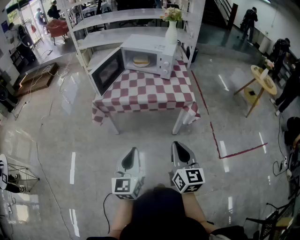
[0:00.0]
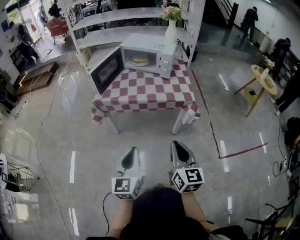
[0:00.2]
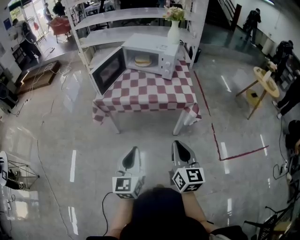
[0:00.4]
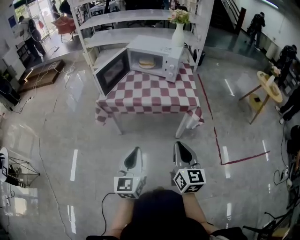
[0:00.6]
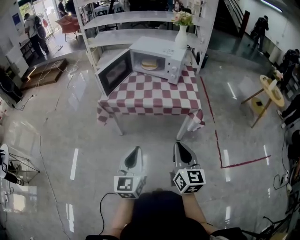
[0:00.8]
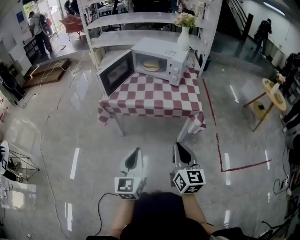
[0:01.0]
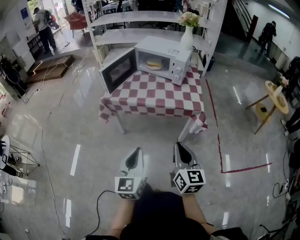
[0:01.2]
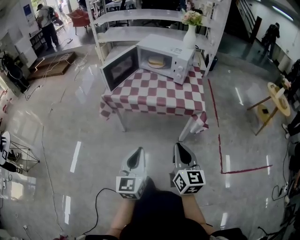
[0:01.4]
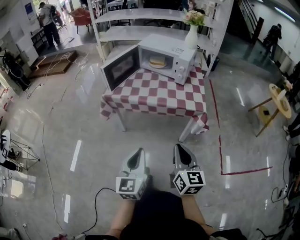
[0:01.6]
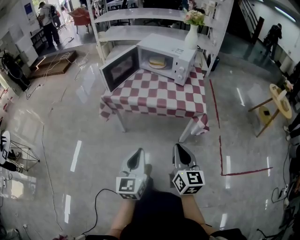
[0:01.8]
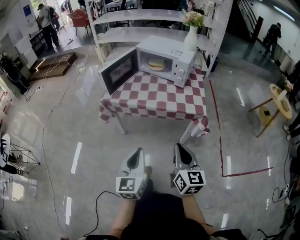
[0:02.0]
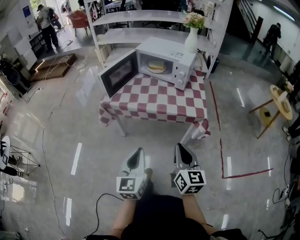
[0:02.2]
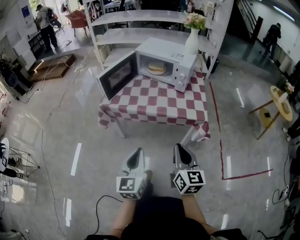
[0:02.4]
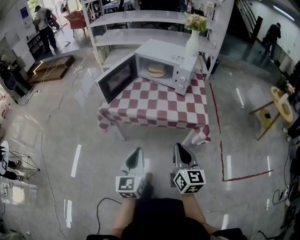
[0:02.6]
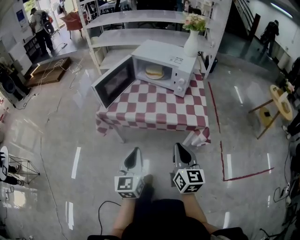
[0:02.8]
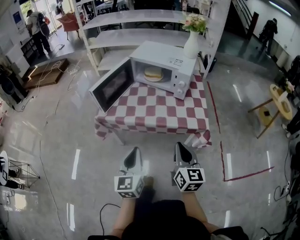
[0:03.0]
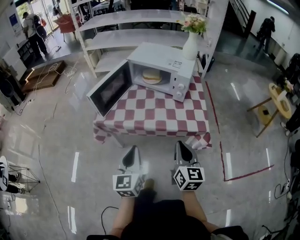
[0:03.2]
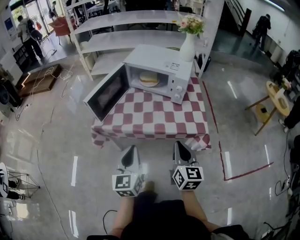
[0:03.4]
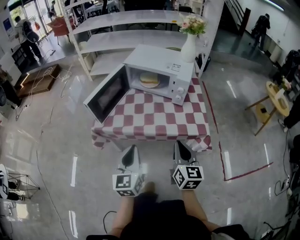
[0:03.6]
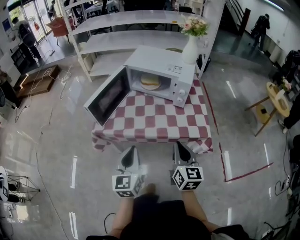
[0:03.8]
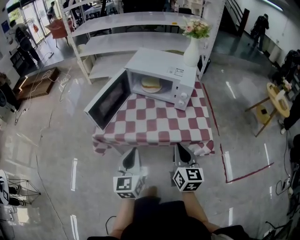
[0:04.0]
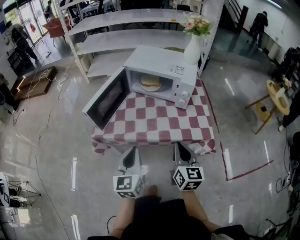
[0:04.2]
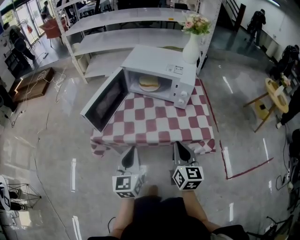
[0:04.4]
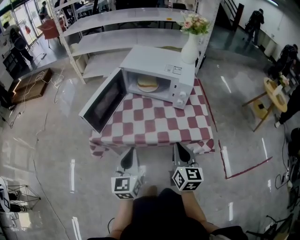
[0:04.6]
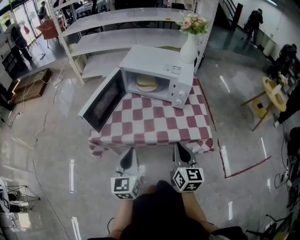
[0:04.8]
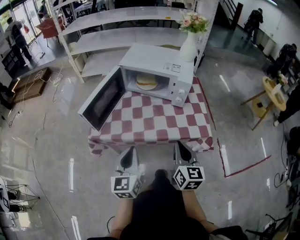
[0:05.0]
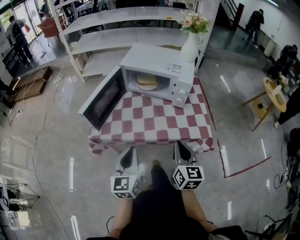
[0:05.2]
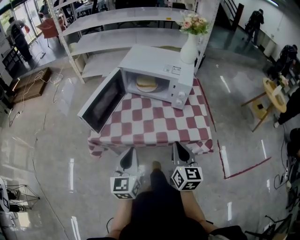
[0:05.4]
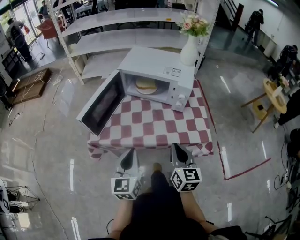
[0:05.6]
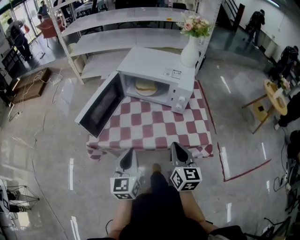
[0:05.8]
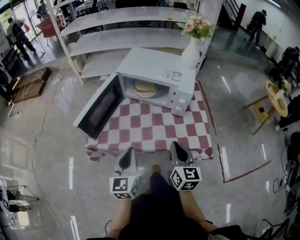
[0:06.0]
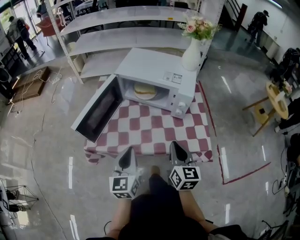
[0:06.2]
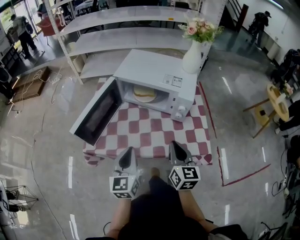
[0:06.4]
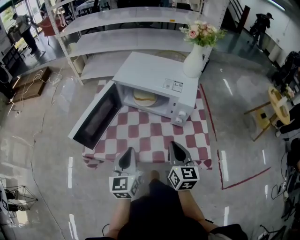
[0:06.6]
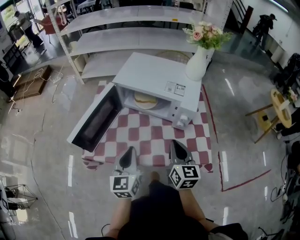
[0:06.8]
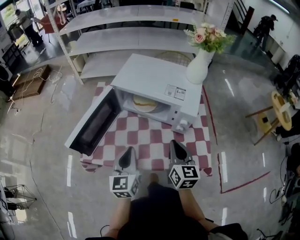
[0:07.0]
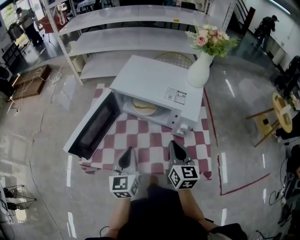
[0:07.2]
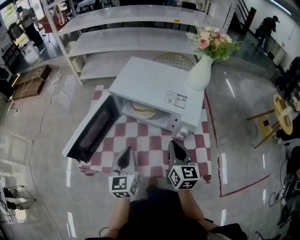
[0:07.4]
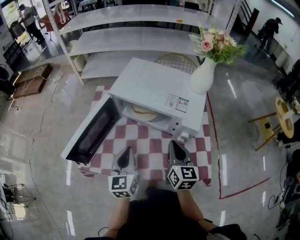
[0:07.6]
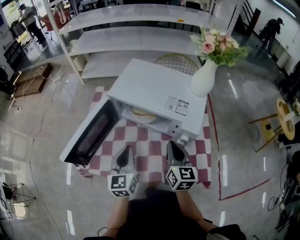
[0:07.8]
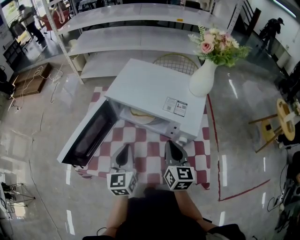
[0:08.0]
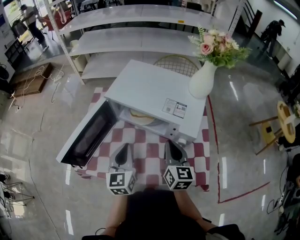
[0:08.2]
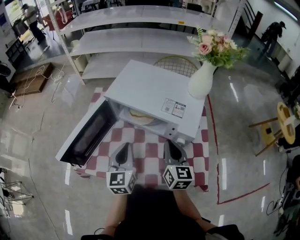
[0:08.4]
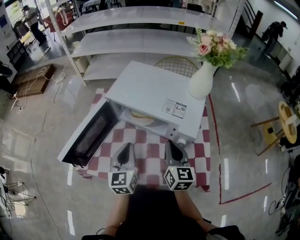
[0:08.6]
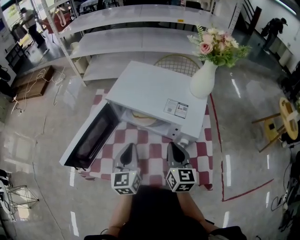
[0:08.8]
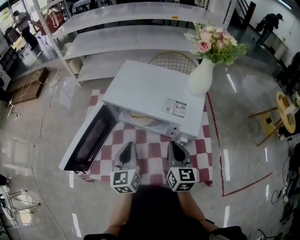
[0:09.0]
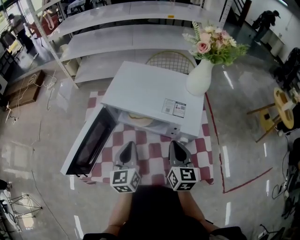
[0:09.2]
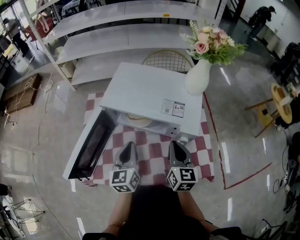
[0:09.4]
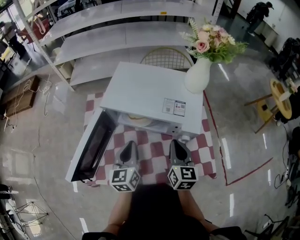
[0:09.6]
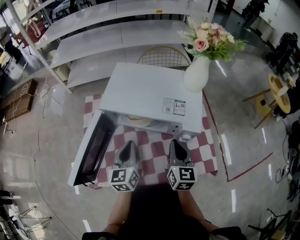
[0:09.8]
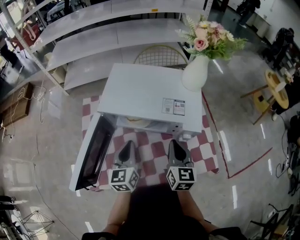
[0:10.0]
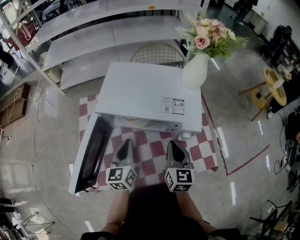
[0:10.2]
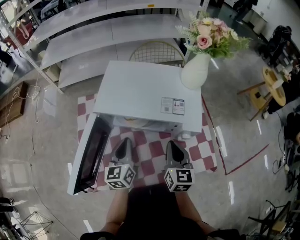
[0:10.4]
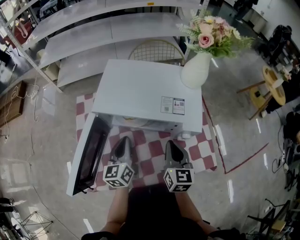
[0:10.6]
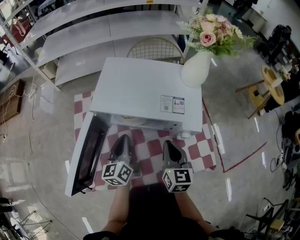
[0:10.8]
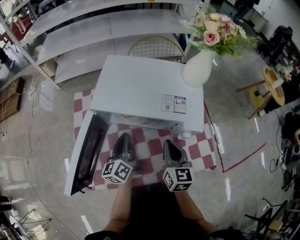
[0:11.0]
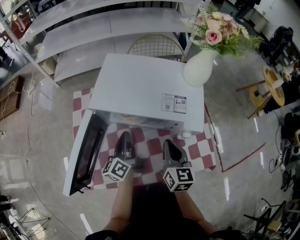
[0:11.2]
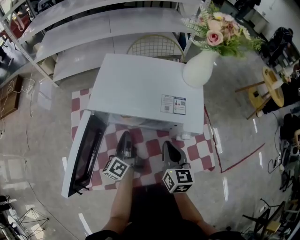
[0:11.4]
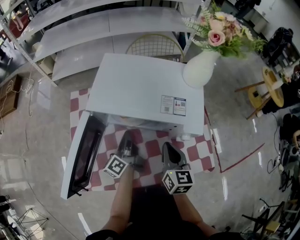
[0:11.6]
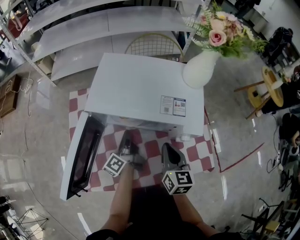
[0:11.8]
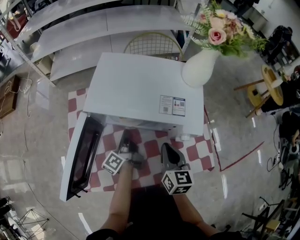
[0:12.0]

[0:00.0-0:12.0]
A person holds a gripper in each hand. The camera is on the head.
0:00.0 to 0:01.6: The left gripper ends up approximately 5 cm from where it was. The right gripper changes place by about 5 cm.
0:01.6 to 0:03.0: The two grippers go roughly 20 cm forward.
0:03.0 to 0:04.4: The grippers both shift forward by roughly 15 cm.
0:04.4 to 0:06.0: The two grippers go approximately 5 cm forward.
0:06.0 to 0:07.6: The two grippers go roughly 20 cm forward.
0:07.6 to 0:09.0: The left gripper goes some 5 cm forward.
0:09.0 to 0:10.4: The left gripper goes some 5 cm forward.
0:10.4 to 0:12.0: The left gripper shifts roughly 10 cm downward and forward, and rolls counterclockwise, seen from behind, by some 60 degrees.

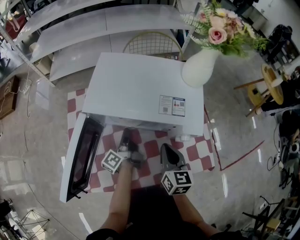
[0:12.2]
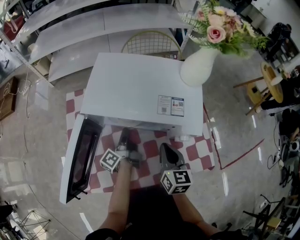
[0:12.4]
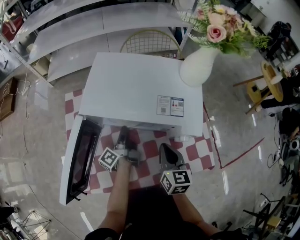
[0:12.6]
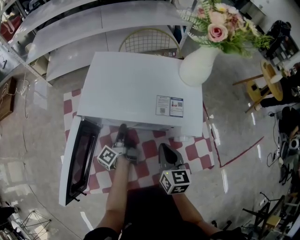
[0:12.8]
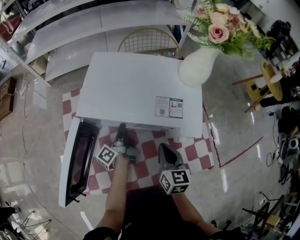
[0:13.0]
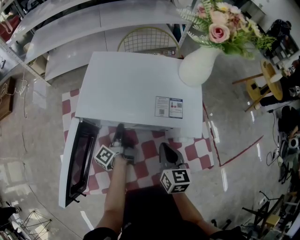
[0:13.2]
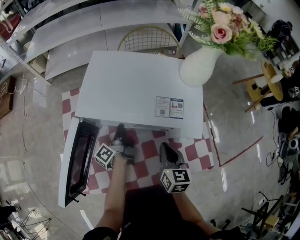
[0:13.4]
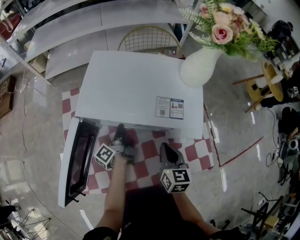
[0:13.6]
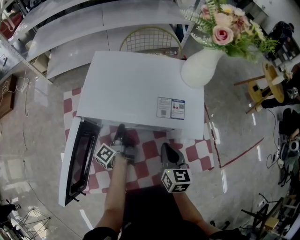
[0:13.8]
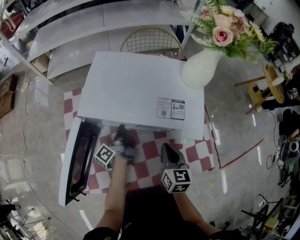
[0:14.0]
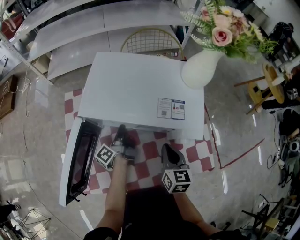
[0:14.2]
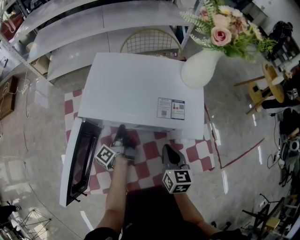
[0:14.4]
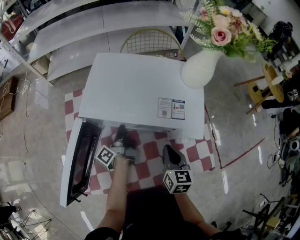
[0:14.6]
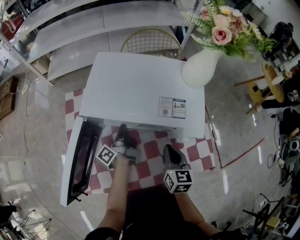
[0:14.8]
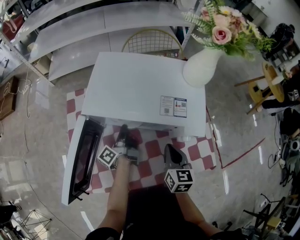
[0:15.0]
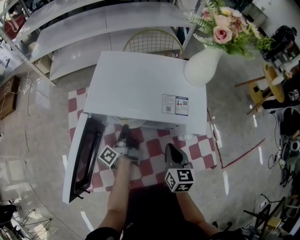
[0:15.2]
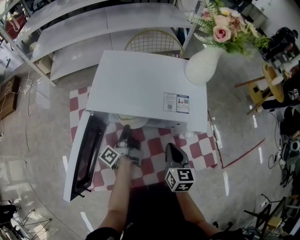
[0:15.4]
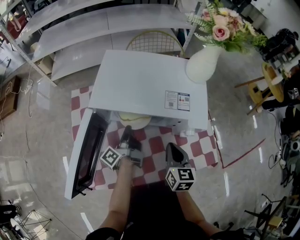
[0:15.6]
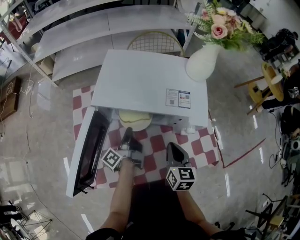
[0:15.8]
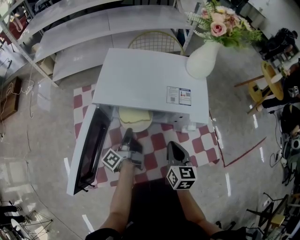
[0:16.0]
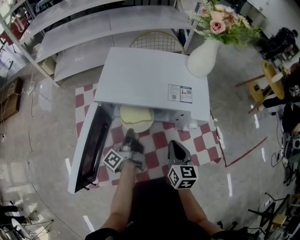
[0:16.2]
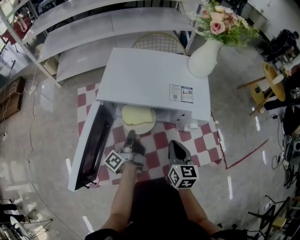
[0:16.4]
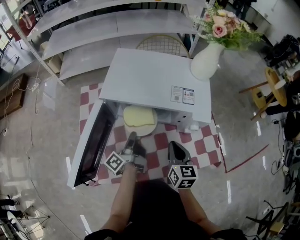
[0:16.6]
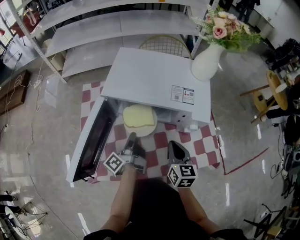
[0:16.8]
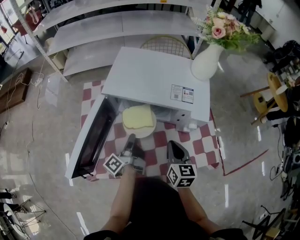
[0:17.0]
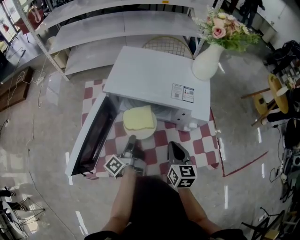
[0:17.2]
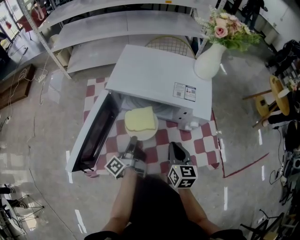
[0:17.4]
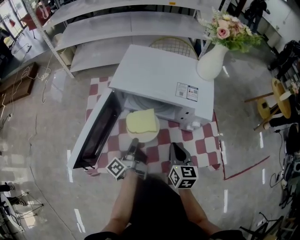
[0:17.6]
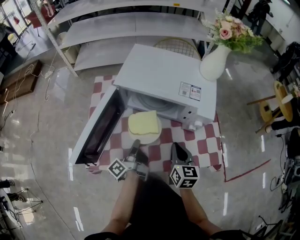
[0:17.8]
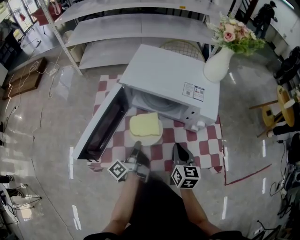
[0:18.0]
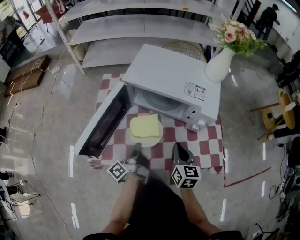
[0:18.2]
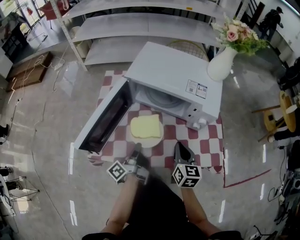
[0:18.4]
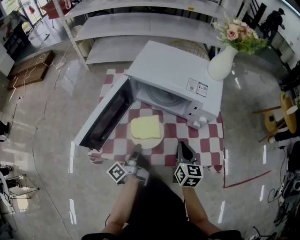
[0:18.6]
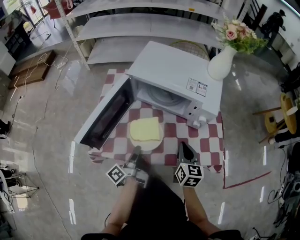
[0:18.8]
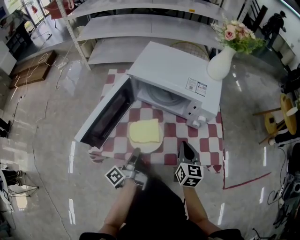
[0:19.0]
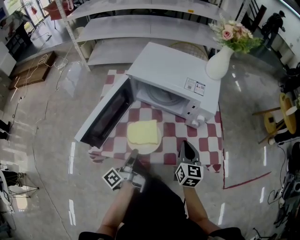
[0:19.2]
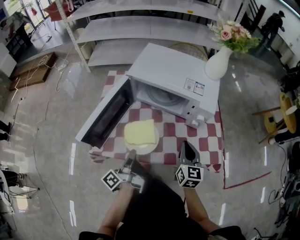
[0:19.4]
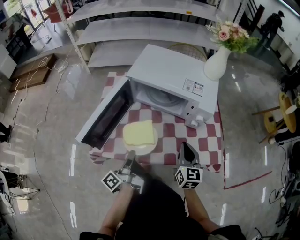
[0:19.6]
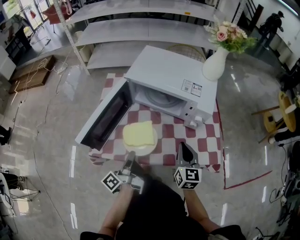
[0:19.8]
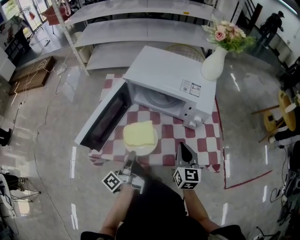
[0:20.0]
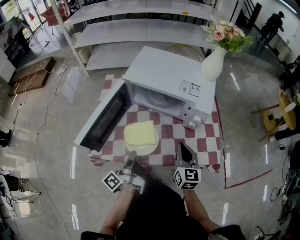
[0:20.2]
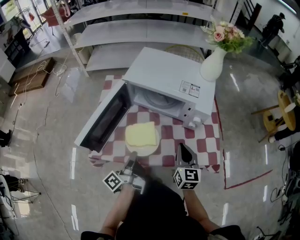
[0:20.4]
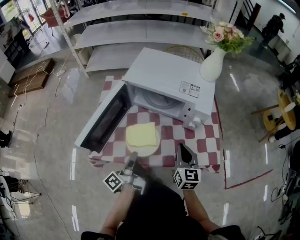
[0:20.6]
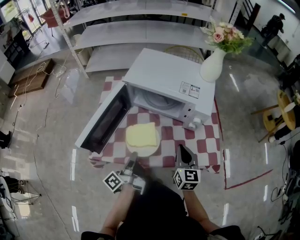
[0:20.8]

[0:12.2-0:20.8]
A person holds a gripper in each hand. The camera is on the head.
0:12.2 to 0:15.0: The grippers stay close to where they were, moving slightly.
0:15.0 to 0:16.6: The left gripper shifts some 10 cm backward.
0:16.6 to 0:18.0: The left gripper is displaced backward by roughly 10 cm.
0:18.0 to 0:19.4: The right gripper ends up some 5 cm from where it was. The left gripper shifts approximately 10 cm backward.
0:19.4 to 0:20.8: The grippers stay close to where they were, moving slightly.

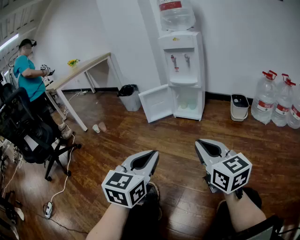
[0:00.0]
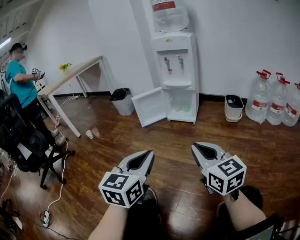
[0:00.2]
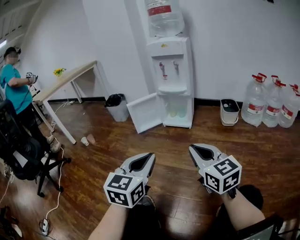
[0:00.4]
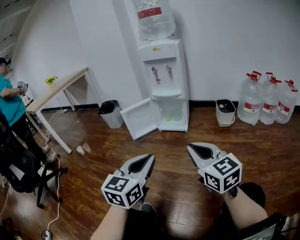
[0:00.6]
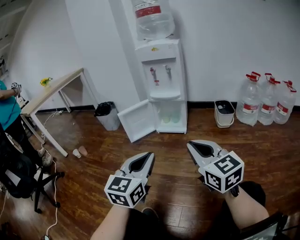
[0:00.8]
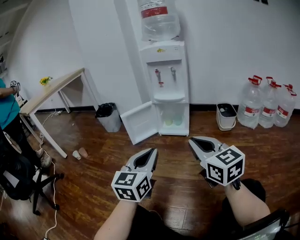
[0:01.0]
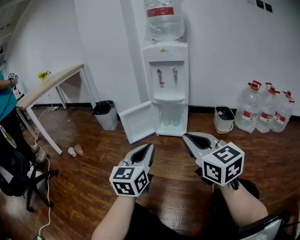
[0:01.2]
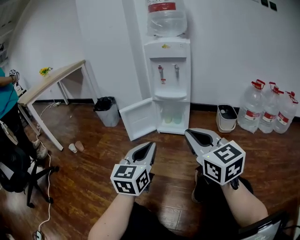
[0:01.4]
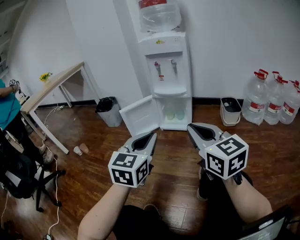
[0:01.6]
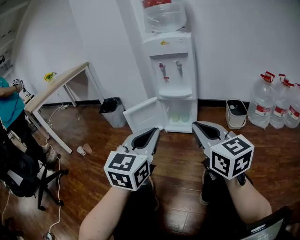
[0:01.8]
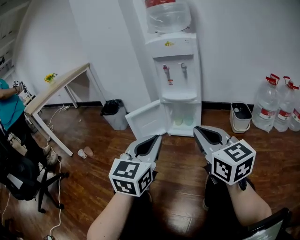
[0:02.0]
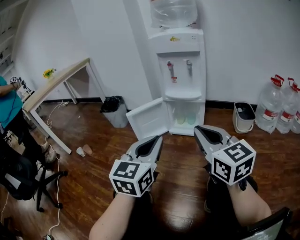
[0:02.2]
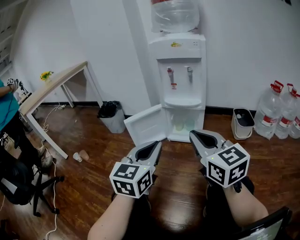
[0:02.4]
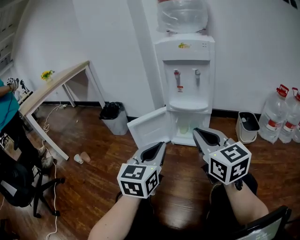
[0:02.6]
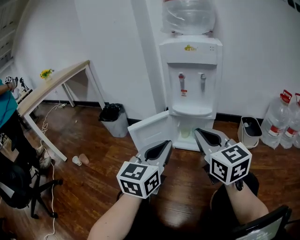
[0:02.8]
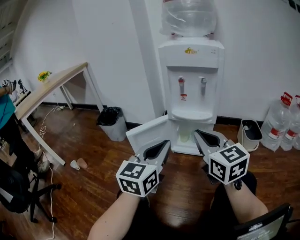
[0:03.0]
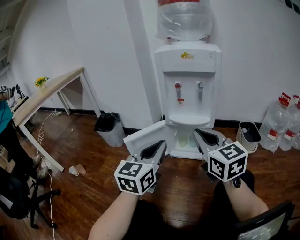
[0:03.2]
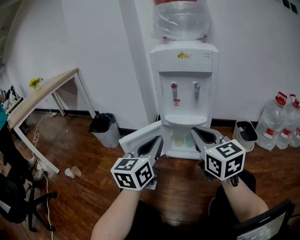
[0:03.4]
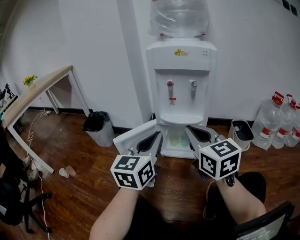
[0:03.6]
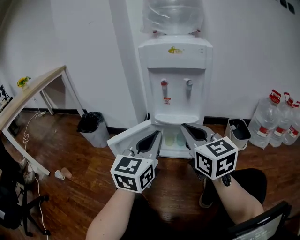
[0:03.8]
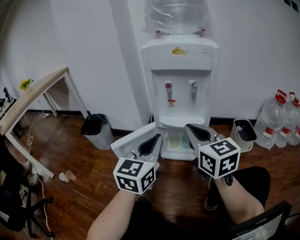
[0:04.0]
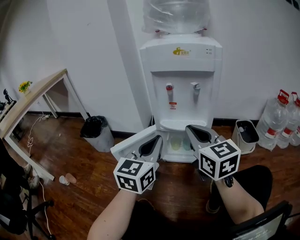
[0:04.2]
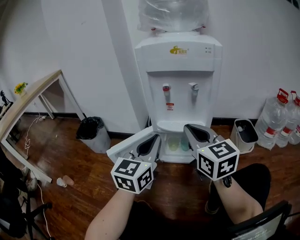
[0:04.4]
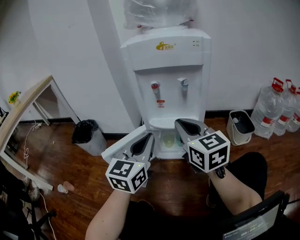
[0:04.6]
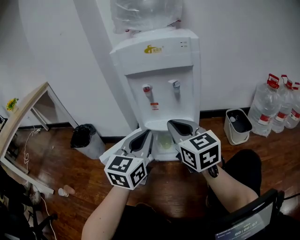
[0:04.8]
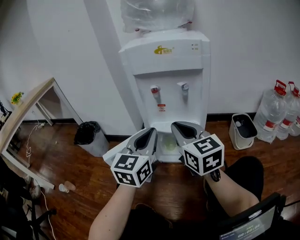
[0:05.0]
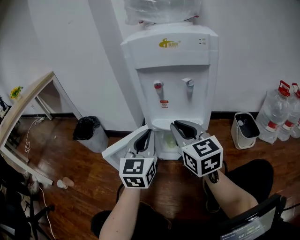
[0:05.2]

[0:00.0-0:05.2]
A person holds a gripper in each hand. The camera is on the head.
0:00.0 to 0:01.8: The grippers both shift forward by about 25 cm.
0:01.8 to 0:03.4: The grippers both shift forward by roughly 25 cm.
0:03.4 to 0:05.2: The grippers both shift forward by roughly 15 cm. The left gripper closes its fingers.
